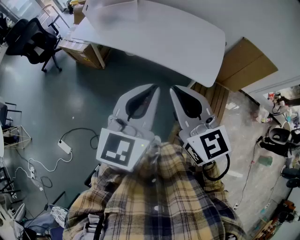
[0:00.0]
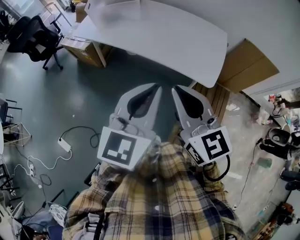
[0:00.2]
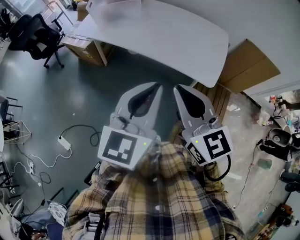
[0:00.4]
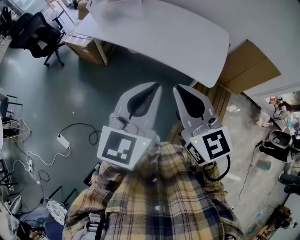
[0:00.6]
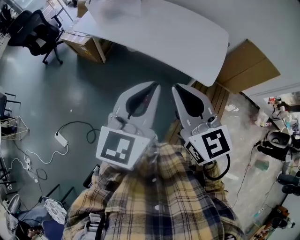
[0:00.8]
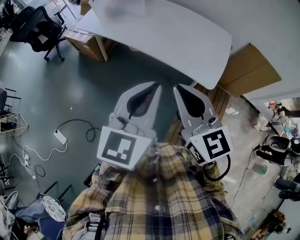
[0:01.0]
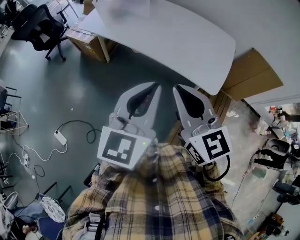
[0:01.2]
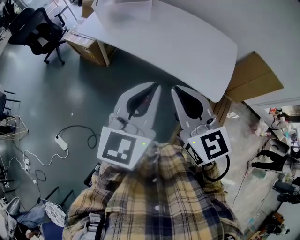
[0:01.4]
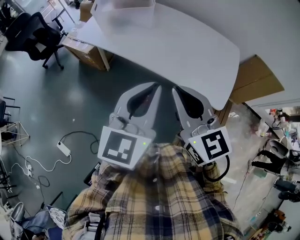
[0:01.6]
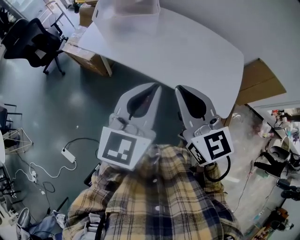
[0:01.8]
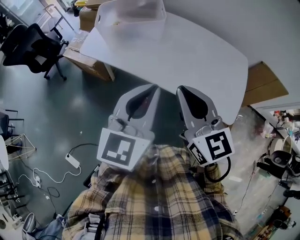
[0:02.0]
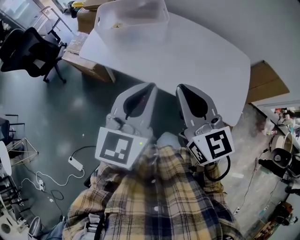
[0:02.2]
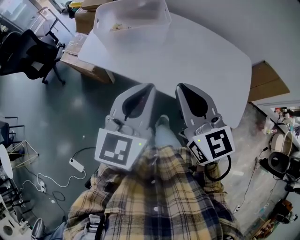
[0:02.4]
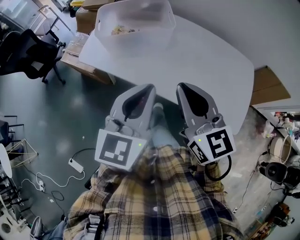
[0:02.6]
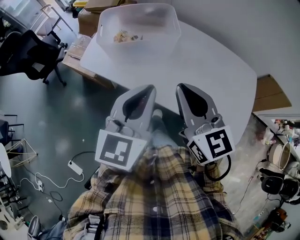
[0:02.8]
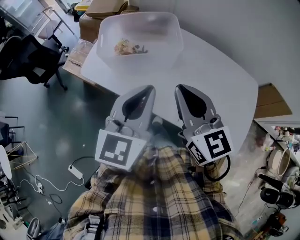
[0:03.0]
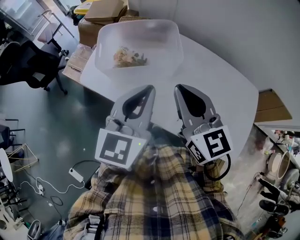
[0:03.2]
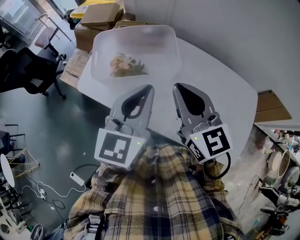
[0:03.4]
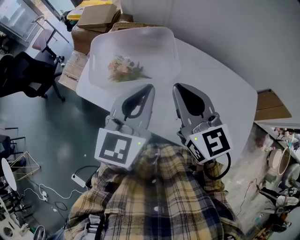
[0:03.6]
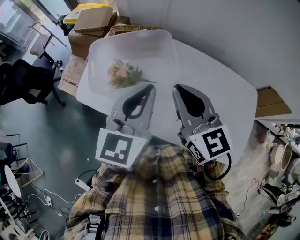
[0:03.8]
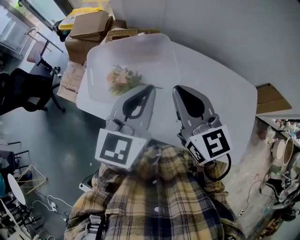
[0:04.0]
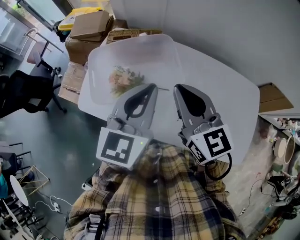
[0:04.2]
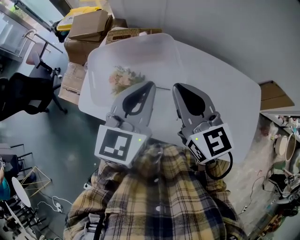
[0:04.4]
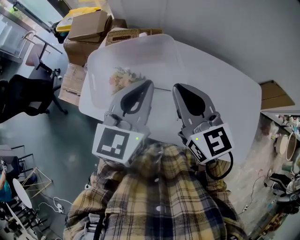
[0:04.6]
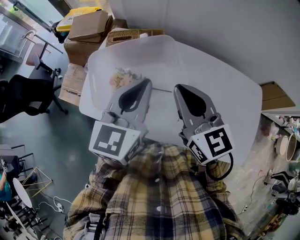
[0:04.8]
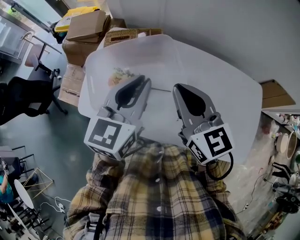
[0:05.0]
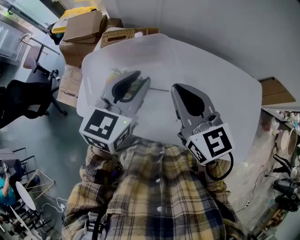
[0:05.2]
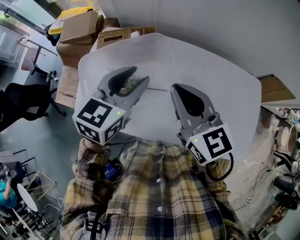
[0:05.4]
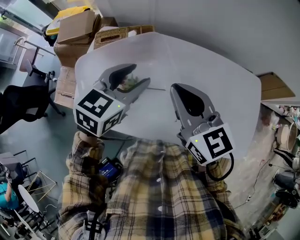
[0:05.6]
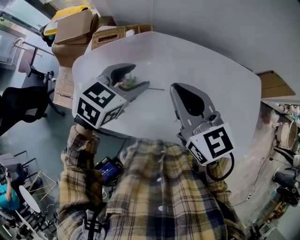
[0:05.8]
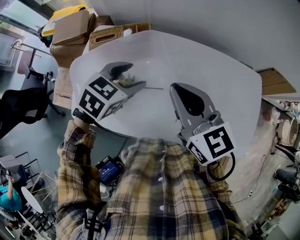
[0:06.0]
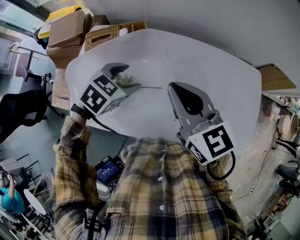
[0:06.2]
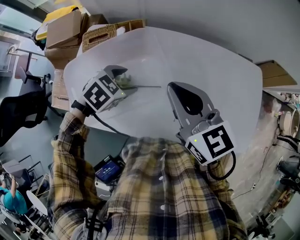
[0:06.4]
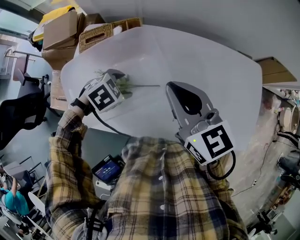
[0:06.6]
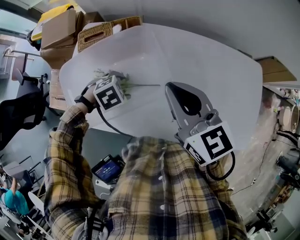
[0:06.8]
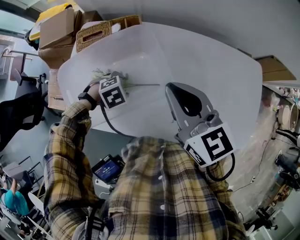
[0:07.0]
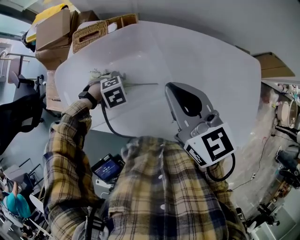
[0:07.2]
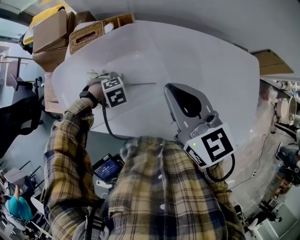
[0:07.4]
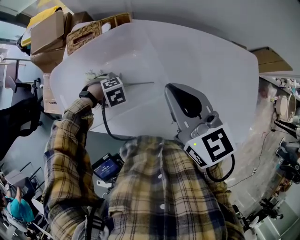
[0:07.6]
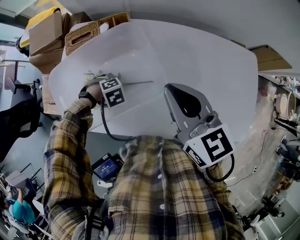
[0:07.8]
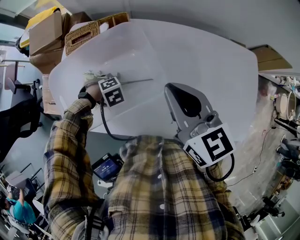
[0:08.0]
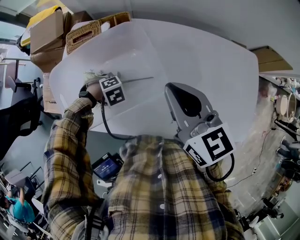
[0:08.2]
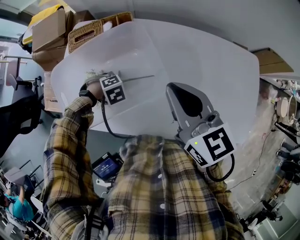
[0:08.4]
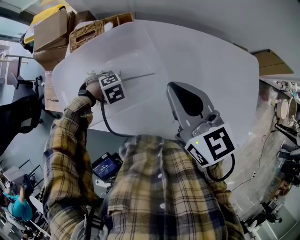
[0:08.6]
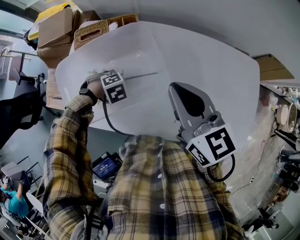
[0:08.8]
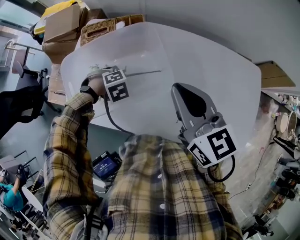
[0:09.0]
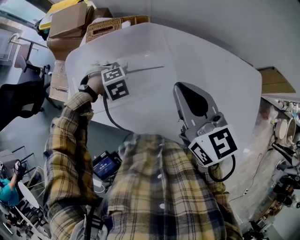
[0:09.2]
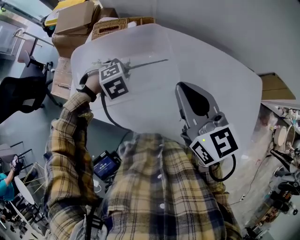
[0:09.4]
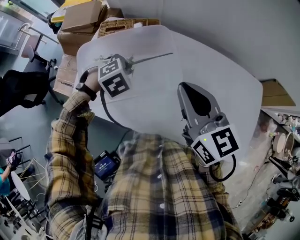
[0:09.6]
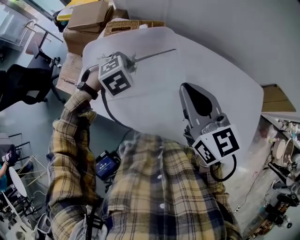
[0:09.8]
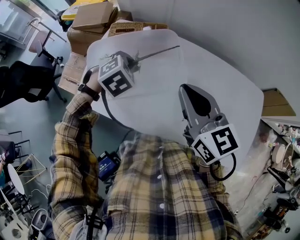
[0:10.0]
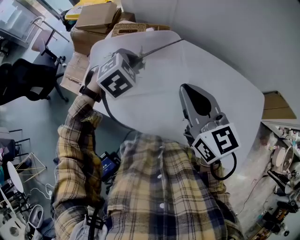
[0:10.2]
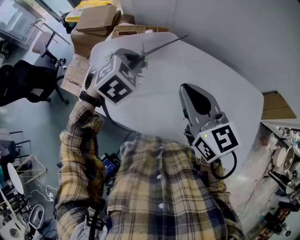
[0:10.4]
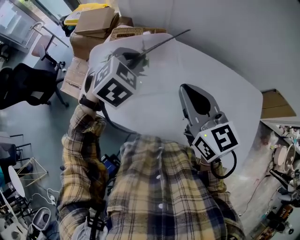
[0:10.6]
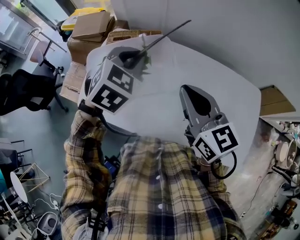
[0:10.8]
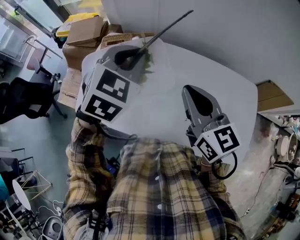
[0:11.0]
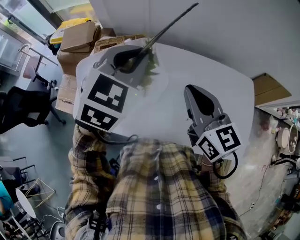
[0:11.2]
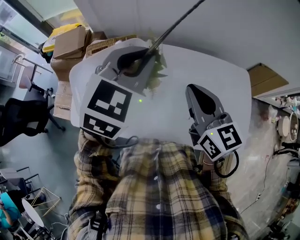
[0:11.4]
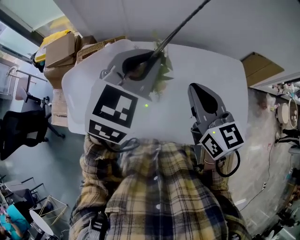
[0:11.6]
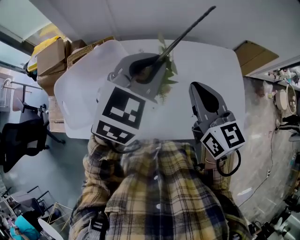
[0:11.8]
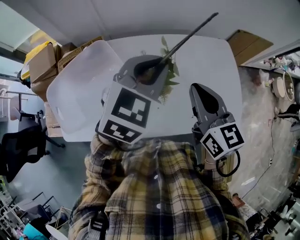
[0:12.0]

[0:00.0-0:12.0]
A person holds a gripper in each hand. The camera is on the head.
0:00.0 to 0:01.6: Both grippers travel together forward and to the left, approximately 15 cm.
0:01.6 to 0:03.0: The two grippers go approximately 35 cm forward.
0:03.0 to 0:04.4: The two grippers go roughly 20 cm forward.
0:04.4 to 0:06.0: The left gripper goes roughly 20 cm downward and forward, angles its fingers downward, by approximately 30 degrees, and opens up. The right gripper shifts about 5 cm forward.
0:06.0 to 0:07.6: The left gripper shifts some 25 cm downward, and points its fingers about 40 degrees further downward.
0:07.6 to 0:09.0: The left gripper travels upward by about 5 cm, and closes.
0:09.0 to 0:10.4: The right gripper changes place by approximately 5 cm; the left gripper shifts roughly 20 cm upward, and angles its fingers upward, by roughly 30 degrees.
0:10.4 to 0:12.0: The left gripper shifts by about 30 cm, and turns by some 40 degrees. Meanwhile the right gripper shifts by some 20 cm, and rotates some 30 degrees.

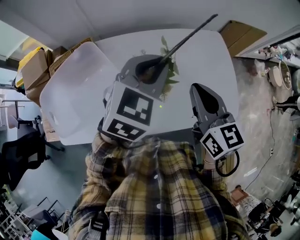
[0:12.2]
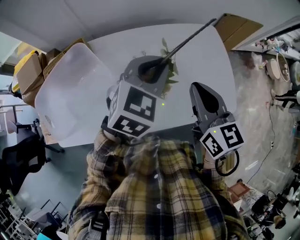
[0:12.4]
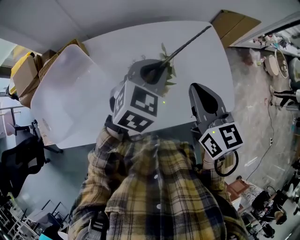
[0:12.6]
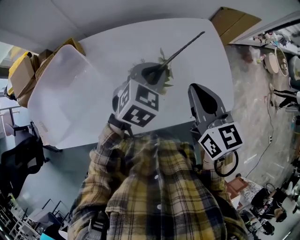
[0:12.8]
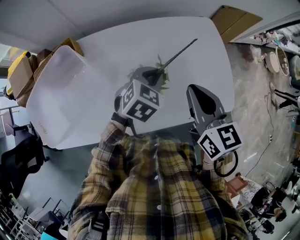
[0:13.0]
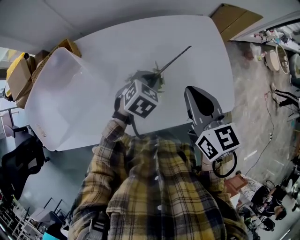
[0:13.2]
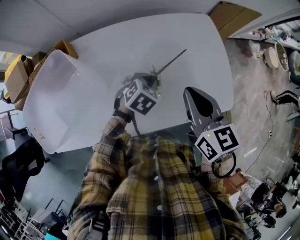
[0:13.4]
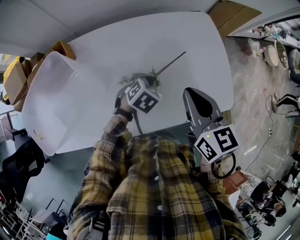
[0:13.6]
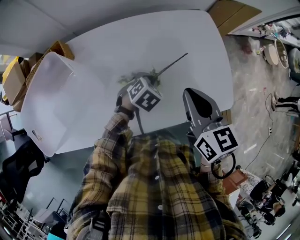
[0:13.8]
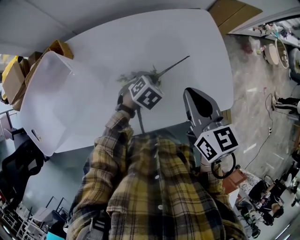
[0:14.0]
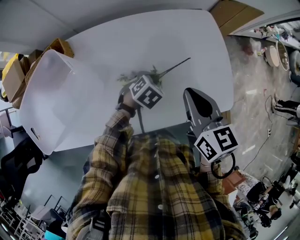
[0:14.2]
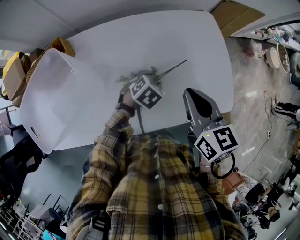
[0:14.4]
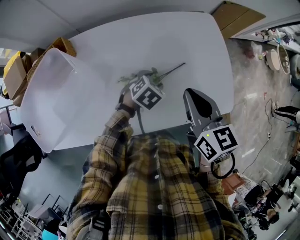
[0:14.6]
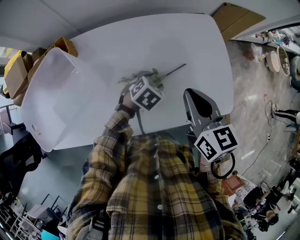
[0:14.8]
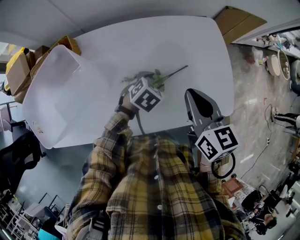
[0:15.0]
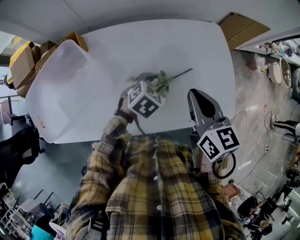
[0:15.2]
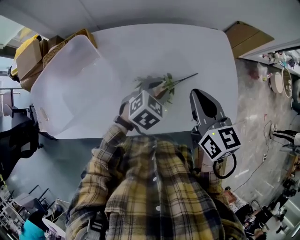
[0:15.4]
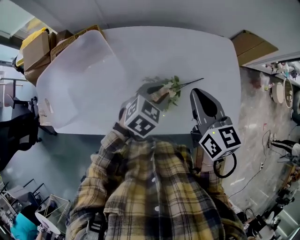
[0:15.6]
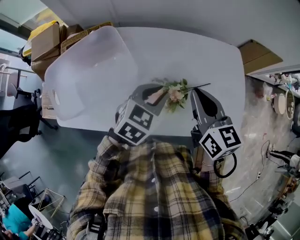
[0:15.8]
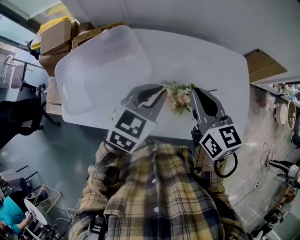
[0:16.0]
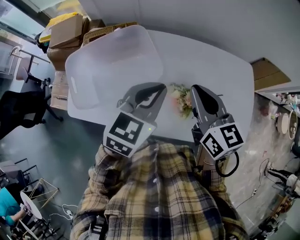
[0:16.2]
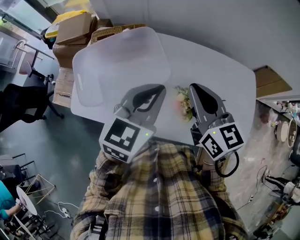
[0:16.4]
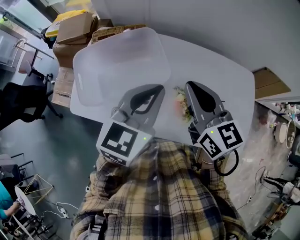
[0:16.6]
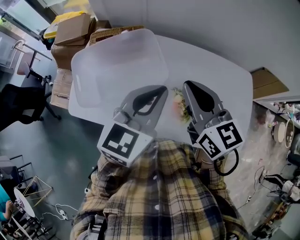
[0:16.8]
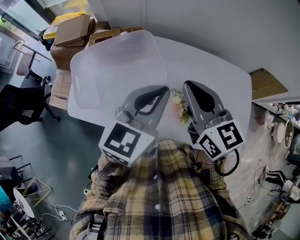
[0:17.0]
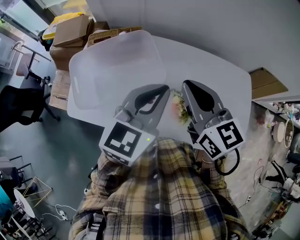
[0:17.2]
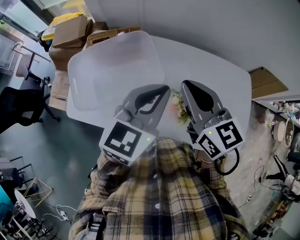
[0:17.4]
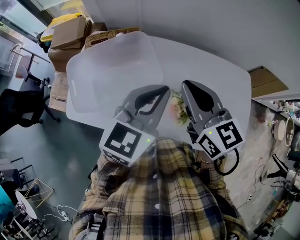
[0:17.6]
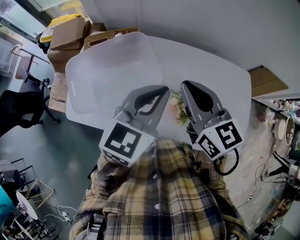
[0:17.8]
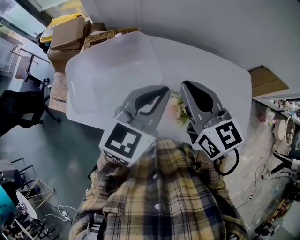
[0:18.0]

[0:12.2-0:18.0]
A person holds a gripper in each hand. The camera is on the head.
0:12.2 to 0:13.6: The right gripper is displaced downward and to the right by some 10 cm. The left gripper goes about 30 cm downward, and tilts its fingers about 30 degrees downward.
0:13.6 to 0:15.0: The left gripper opens up.
0:15.0 to 0:16.6: The right gripper shifts by some 25 cm, and rotates approximately 30 degrees. The left gripper moves upward, some 30 cm, points its fingers roughly 40 degrees further upward, and closes its fingers.
0:16.6 to 0:18.0: The grippers make only small movements.

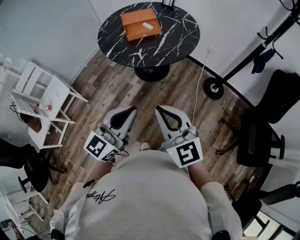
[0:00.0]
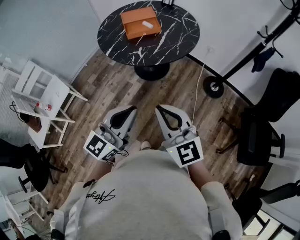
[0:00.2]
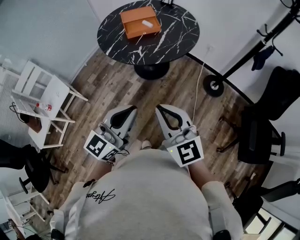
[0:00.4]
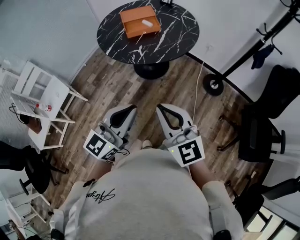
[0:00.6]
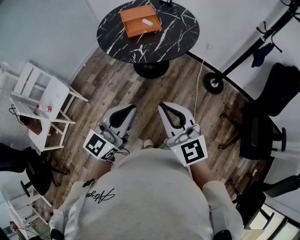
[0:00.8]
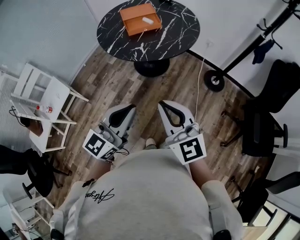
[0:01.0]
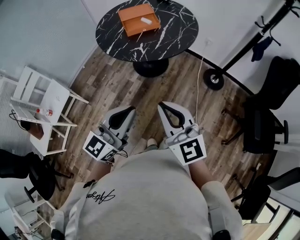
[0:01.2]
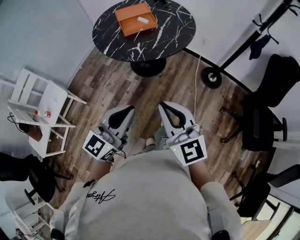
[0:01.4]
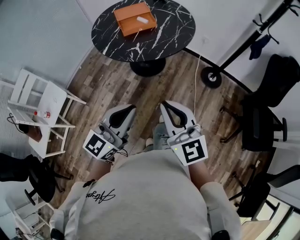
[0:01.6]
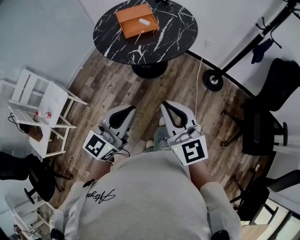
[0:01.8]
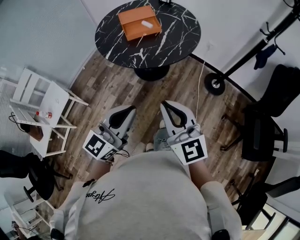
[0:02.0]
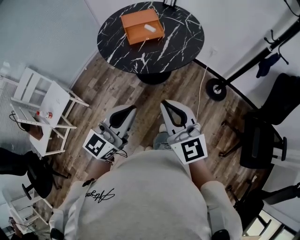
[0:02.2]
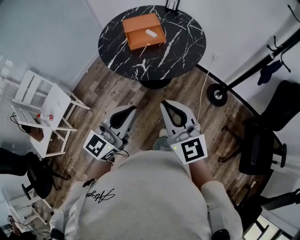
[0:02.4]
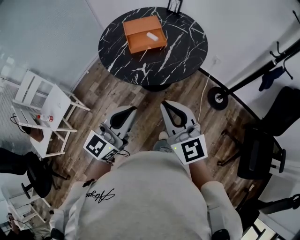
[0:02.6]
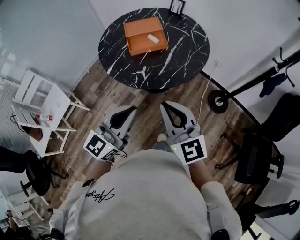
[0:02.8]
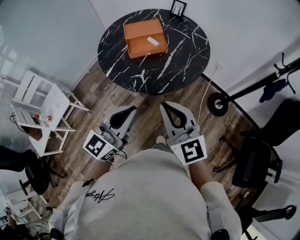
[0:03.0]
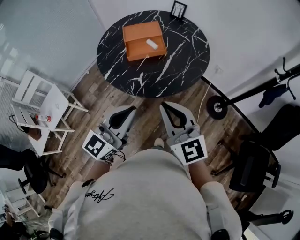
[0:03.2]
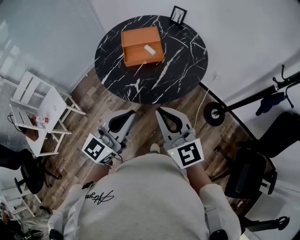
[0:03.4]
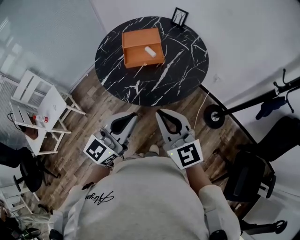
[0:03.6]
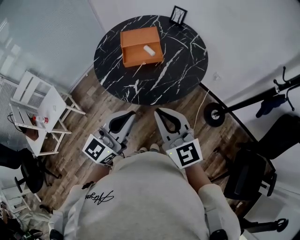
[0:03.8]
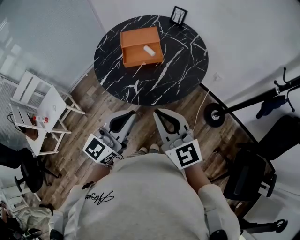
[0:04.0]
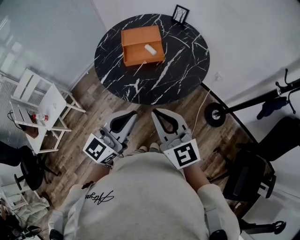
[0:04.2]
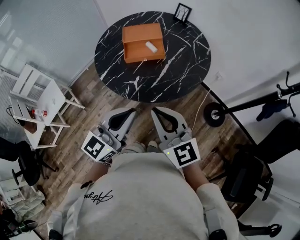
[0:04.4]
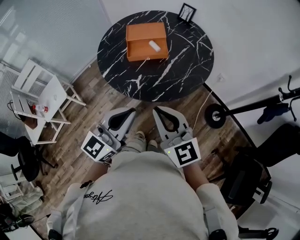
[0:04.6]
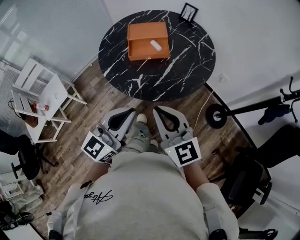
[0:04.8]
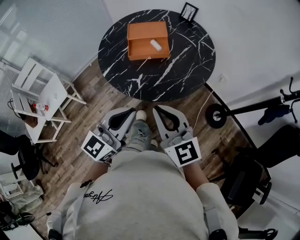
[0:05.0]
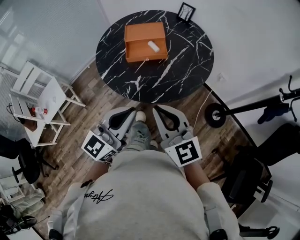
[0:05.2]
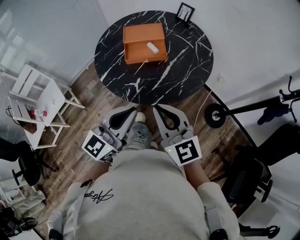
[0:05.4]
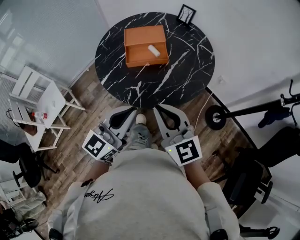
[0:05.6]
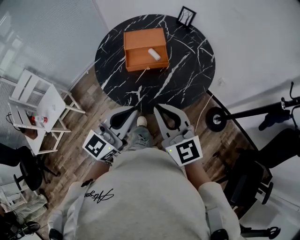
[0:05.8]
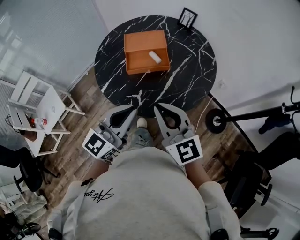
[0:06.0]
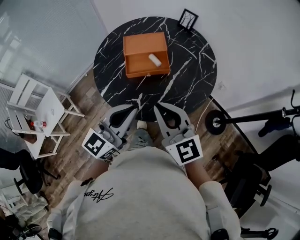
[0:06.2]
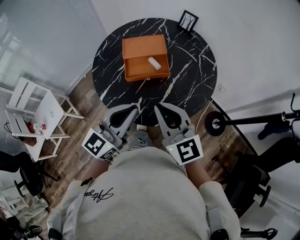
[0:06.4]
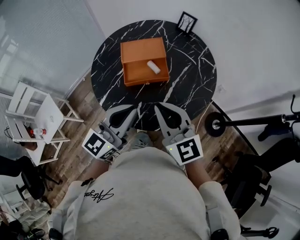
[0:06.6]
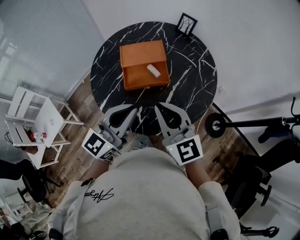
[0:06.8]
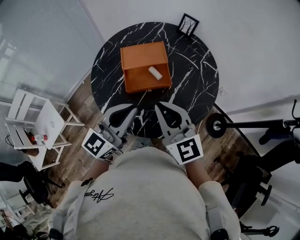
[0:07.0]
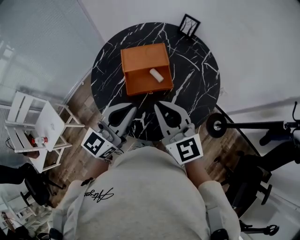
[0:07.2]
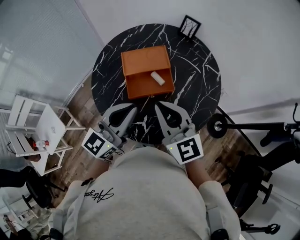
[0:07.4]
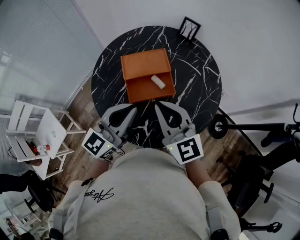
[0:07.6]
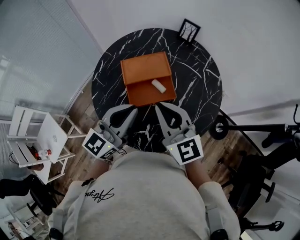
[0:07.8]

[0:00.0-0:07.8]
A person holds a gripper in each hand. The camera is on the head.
0:00.0 to 0:01.6: The grippers make only small movements.
0:01.6 to 0:03.2: The grippers both shift forward by roughly 20 cm.
0:03.2 to 0:04.6: There are only small adjustments of the grippers.
0:04.6 to 0:06.2: Both grippers travel together forward, about 10 cm.
0:06.2 to 0:07.8: Both grippers travel together forward, some 15 cm.
